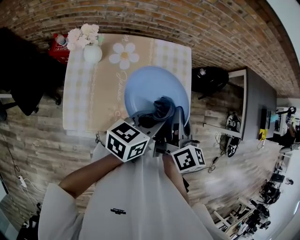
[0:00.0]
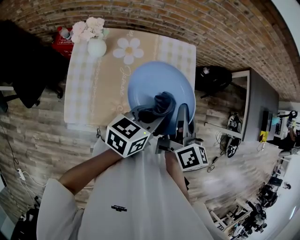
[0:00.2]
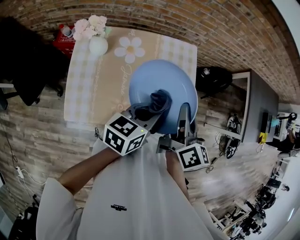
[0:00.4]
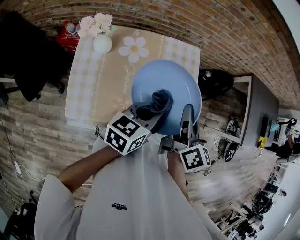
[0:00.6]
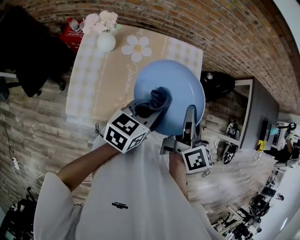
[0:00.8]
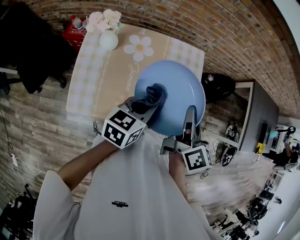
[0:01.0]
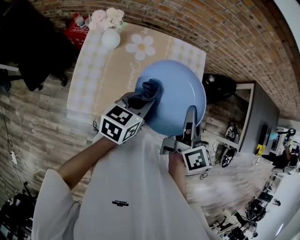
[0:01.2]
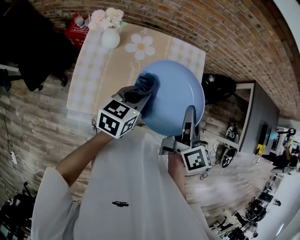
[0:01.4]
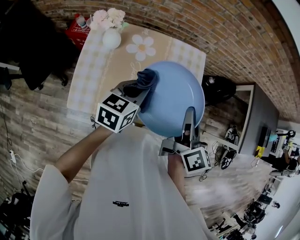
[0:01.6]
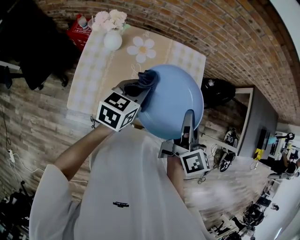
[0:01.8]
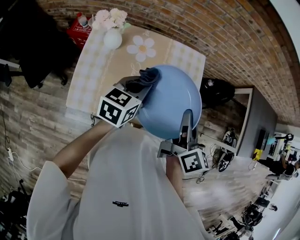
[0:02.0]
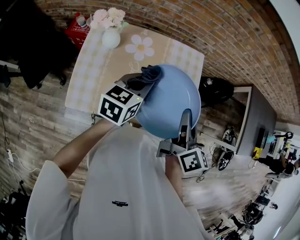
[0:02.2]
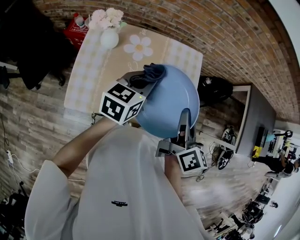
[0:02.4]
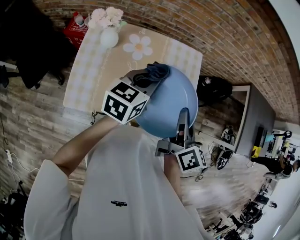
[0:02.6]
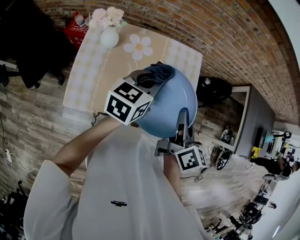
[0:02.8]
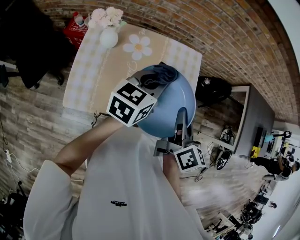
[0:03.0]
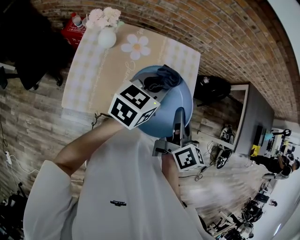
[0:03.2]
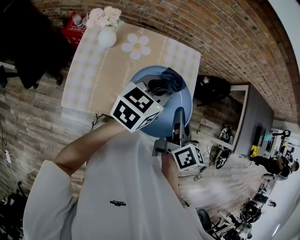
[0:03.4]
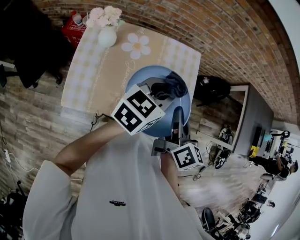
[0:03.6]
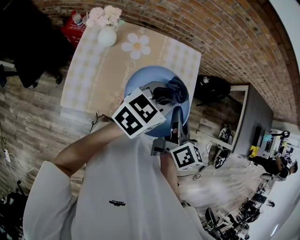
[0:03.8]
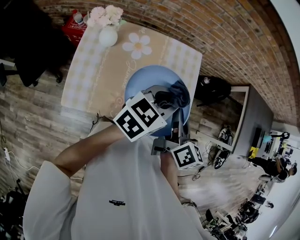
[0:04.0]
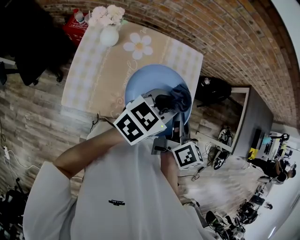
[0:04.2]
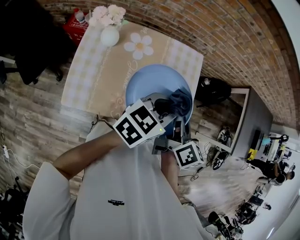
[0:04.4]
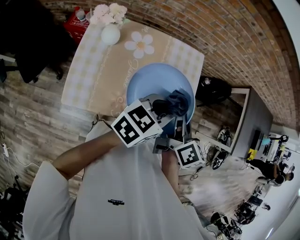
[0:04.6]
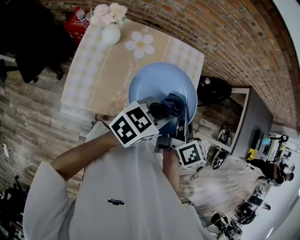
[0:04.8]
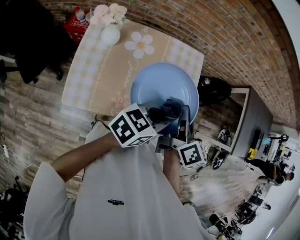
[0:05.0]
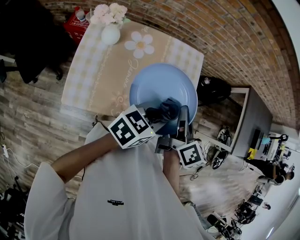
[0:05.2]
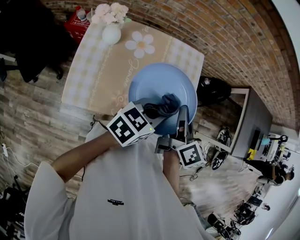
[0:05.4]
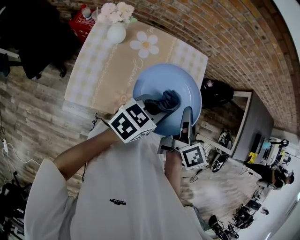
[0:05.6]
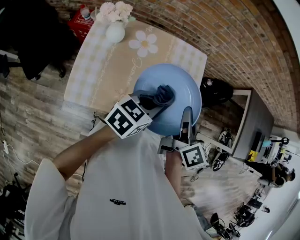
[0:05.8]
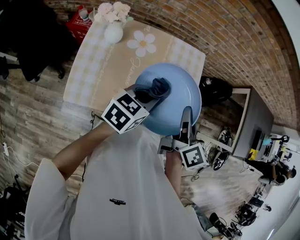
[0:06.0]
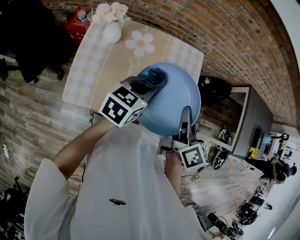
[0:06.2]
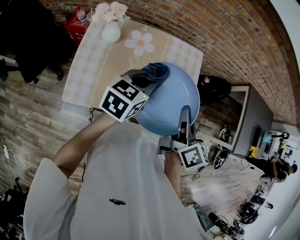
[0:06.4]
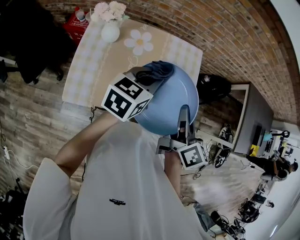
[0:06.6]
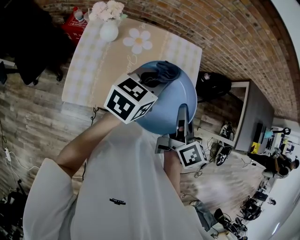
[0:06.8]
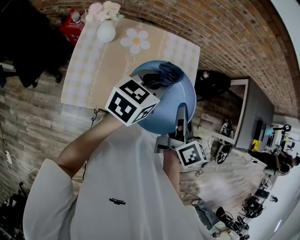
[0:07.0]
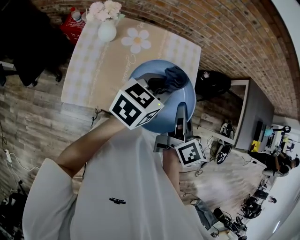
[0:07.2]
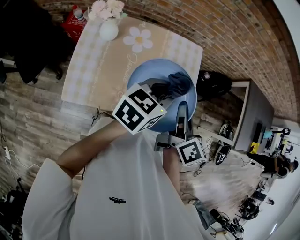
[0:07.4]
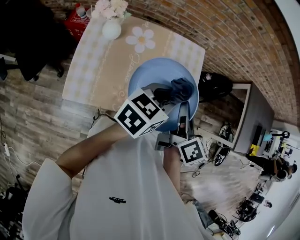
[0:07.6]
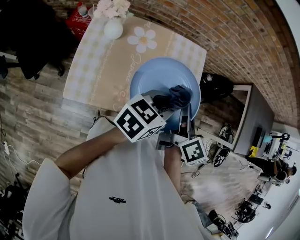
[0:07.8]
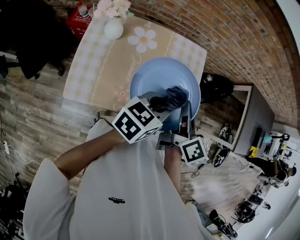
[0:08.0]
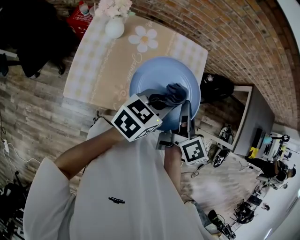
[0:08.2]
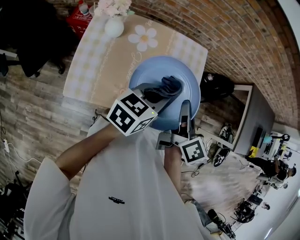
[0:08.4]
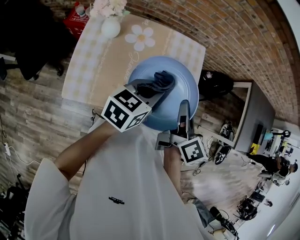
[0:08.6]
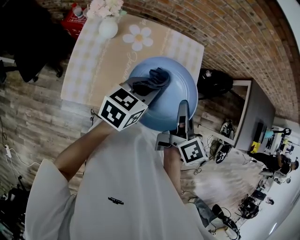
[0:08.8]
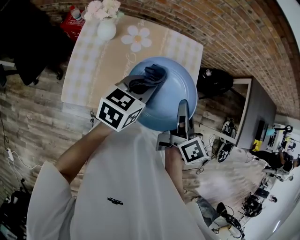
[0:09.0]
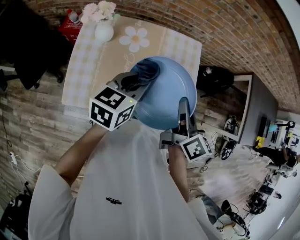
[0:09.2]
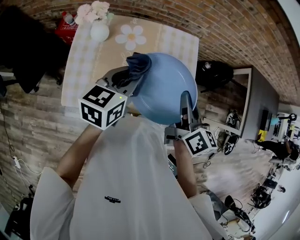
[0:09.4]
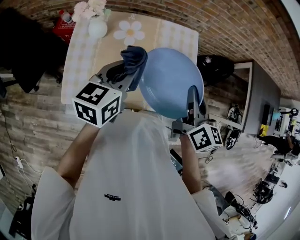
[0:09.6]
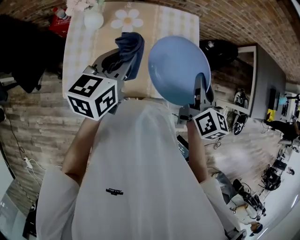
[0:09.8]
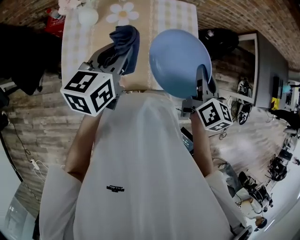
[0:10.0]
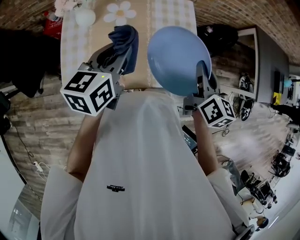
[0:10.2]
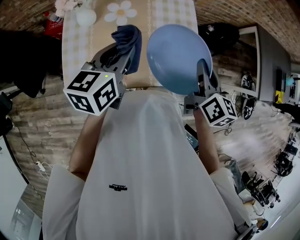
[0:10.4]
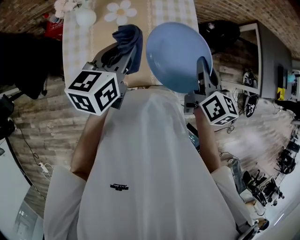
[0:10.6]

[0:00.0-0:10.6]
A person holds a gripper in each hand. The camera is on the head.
0:00.0 to 0:01.6: The left gripper moves to the left, about 10 cm, and changes its angle by approximately 20 degrees.
0:01.6 to 0:03.0: The left gripper goes about 5 cm upward.
0:03.0 to 0:04.6: The left gripper shifts roughly 5 cm to the right.
0:04.6 to 0:06.0: The left gripper moves downward and to the left, some 10 cm.
0:06.0 to 0:07.6: The left gripper travels upward and to the right by about 10 cm.
0:07.6 to 0:09.0: The left gripper heads to the left, covering some 5 cm.
0:09.0 to 0:10.6: The right gripper is displaced to the right by about 5 cm.

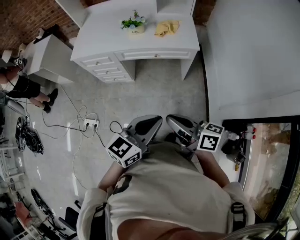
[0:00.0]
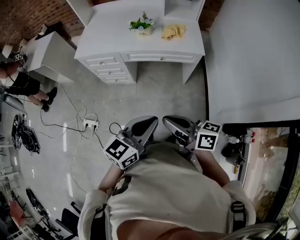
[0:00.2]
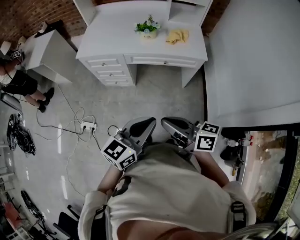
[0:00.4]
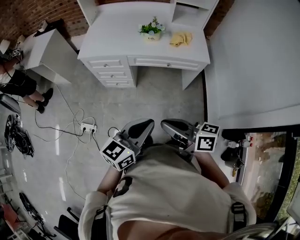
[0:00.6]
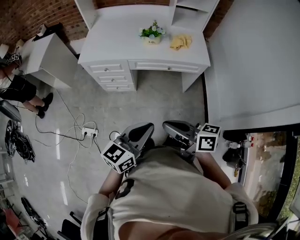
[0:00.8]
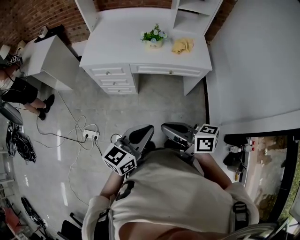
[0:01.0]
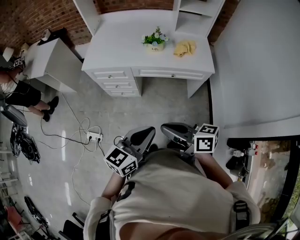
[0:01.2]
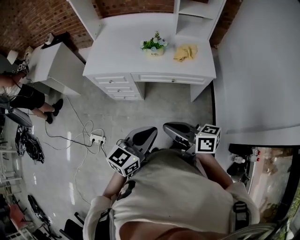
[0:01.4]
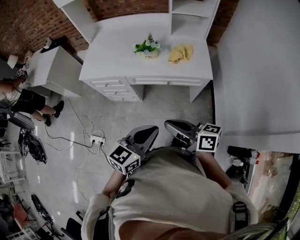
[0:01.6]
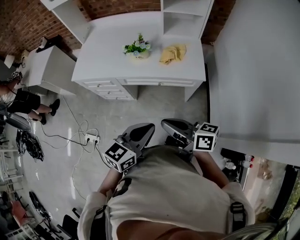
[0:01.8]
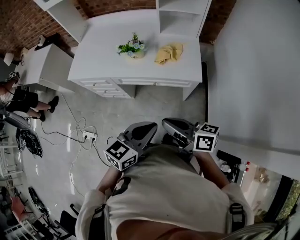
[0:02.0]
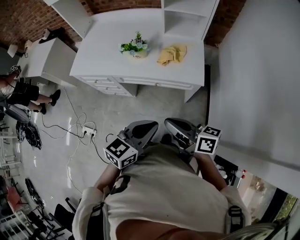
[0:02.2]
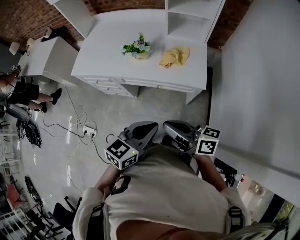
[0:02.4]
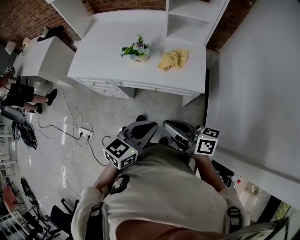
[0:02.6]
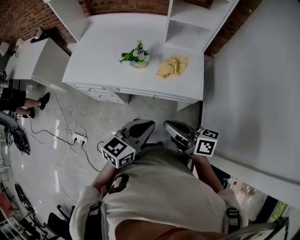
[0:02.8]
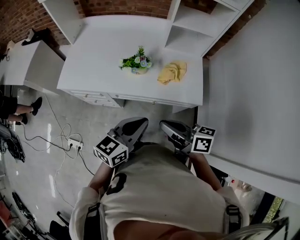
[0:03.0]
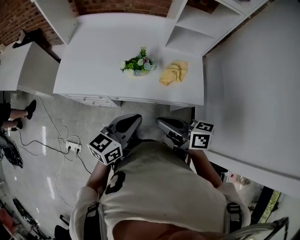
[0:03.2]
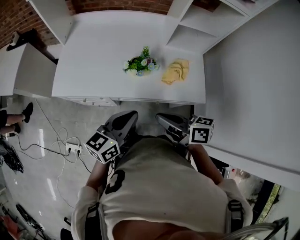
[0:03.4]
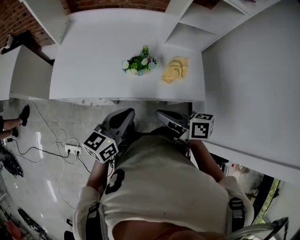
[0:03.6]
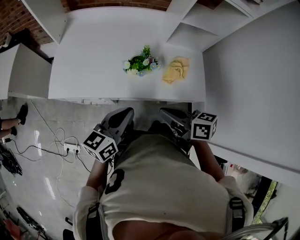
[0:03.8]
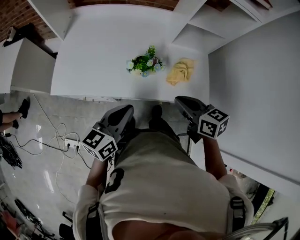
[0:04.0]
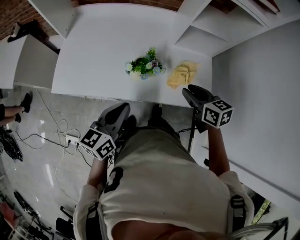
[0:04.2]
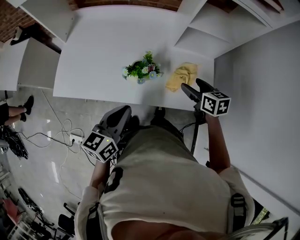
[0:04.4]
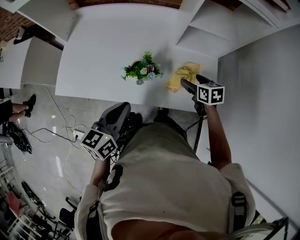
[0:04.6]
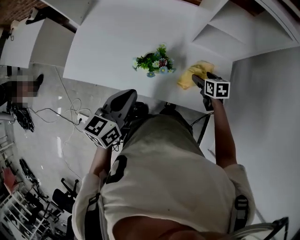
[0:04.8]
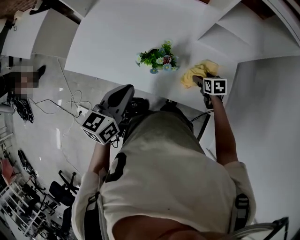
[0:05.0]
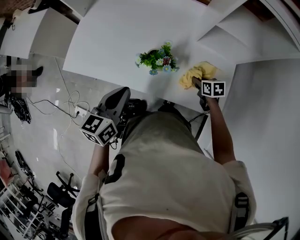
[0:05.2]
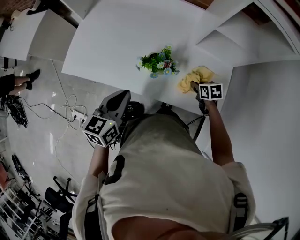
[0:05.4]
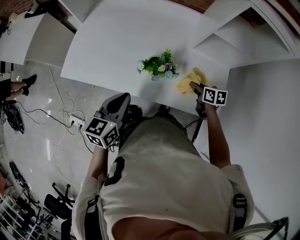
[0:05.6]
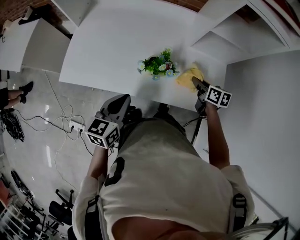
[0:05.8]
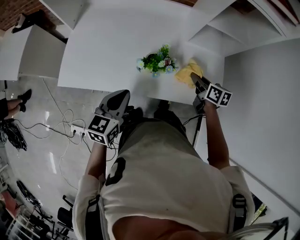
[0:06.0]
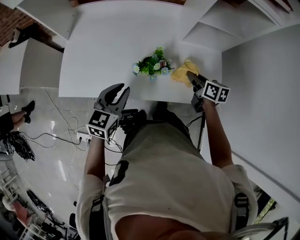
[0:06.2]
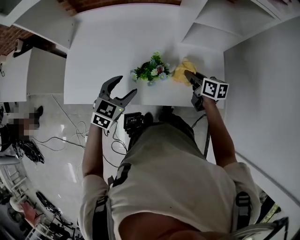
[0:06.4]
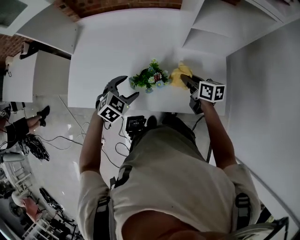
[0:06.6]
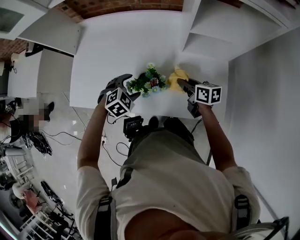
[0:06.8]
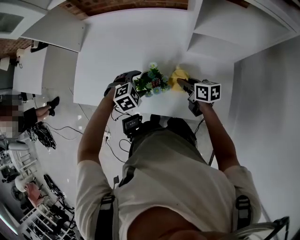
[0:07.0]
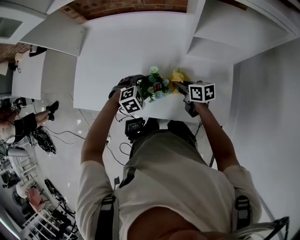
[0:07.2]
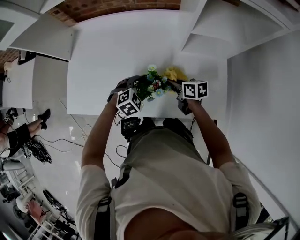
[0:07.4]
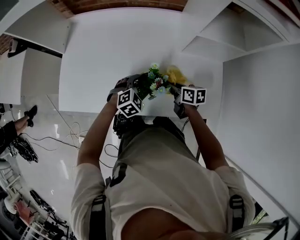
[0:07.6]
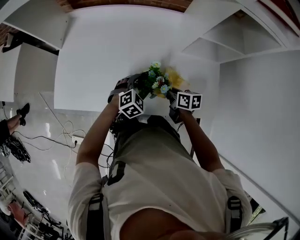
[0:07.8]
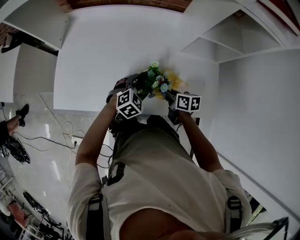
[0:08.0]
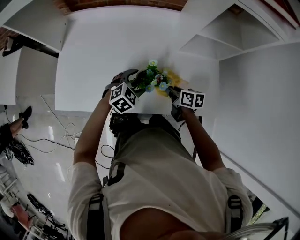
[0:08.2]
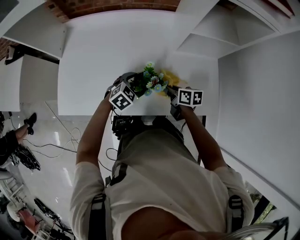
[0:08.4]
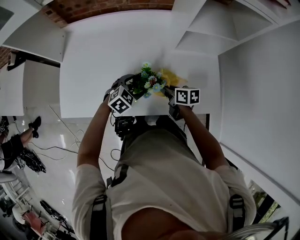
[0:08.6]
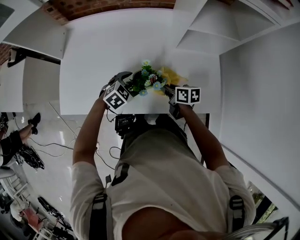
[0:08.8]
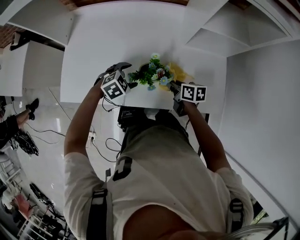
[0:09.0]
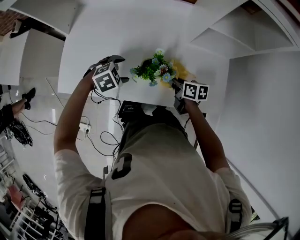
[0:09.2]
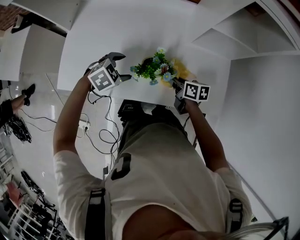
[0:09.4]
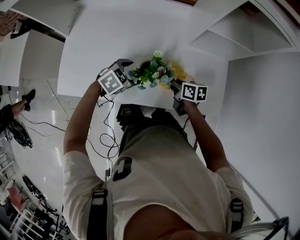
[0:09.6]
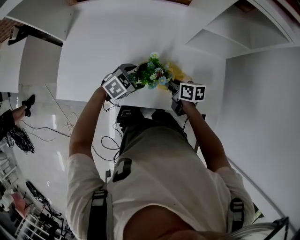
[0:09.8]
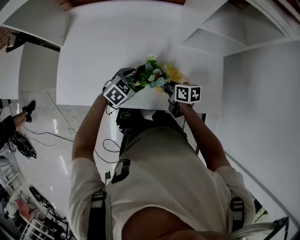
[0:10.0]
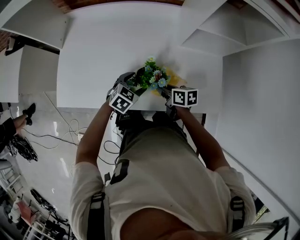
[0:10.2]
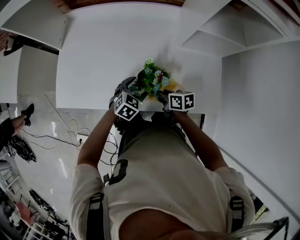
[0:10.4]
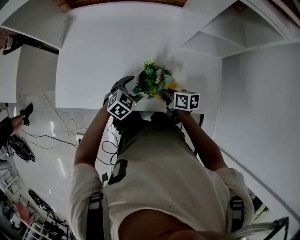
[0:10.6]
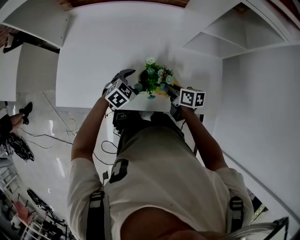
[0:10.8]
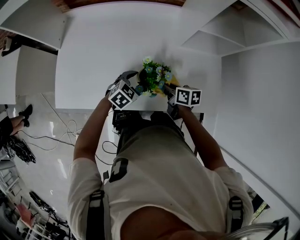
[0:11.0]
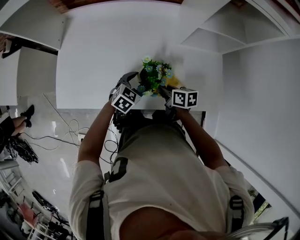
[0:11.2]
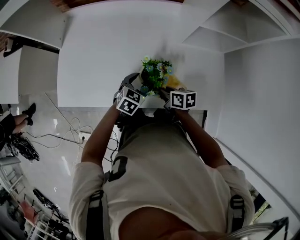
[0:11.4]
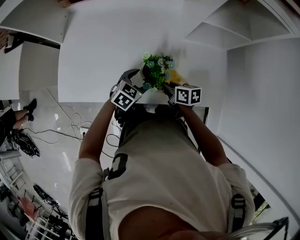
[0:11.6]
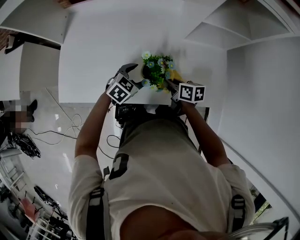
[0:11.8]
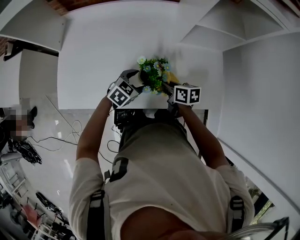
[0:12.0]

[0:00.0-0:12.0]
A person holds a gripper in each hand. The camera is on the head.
0:00.0 to 0:01.6: The grippers both shift forward by some 15 cm. The left gripper moves roughly 15 cm to the left and comes back, while the right gripper travels to the left and back again, approximately 15 cm each way.
0:01.6 to 0:03.0: The grippers both shift forward by approximately 20 cm.
0:03.0 to 0:04.4: The left gripper is displaced forward and to the left by some 20 cm. The right gripper goes roughly 25 cm forward, tilts its fingers about 30 degrees downward, and opens its fingers.
0:04.4 to 0:06.0: The left gripper moves to the left, about 5 cm. The right gripper travels downward and back again, roughly 20 cm each way, and closes up.
0:06.0 to 0:07.6: The right gripper is displaced downward and to the left by roughly 10 cm; the left gripper moves downward, forward and to the right, about 25 cm, tilts its fingers approximately 30 degrees downward, and opens.
0:07.6 to 0:09.0: The left gripper heads to the left, covering about 5 cm.
0:09.0 to 0:10.4: The left gripper shifts by approximately 5 cm, and changes its angle by approximately 30 degrees, while the right gripper ends up roughly 5 cm from where it was.
0:10.4 to 0:12.0: The grippers move only a little.

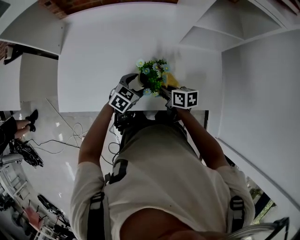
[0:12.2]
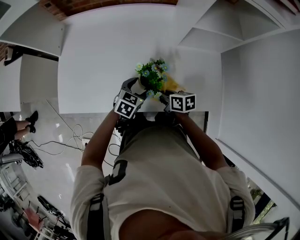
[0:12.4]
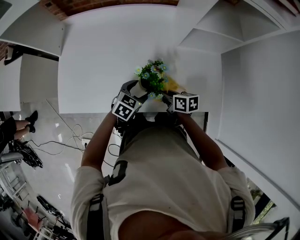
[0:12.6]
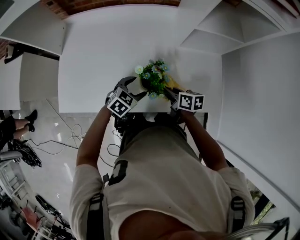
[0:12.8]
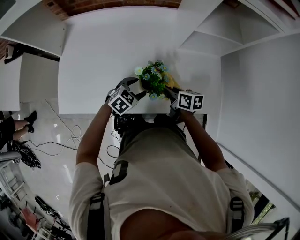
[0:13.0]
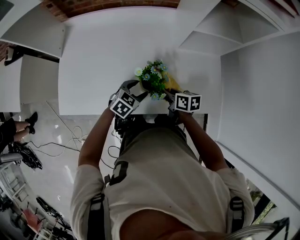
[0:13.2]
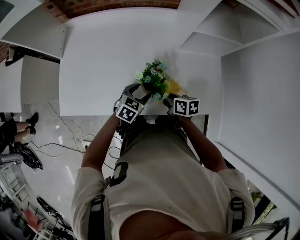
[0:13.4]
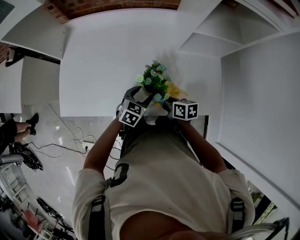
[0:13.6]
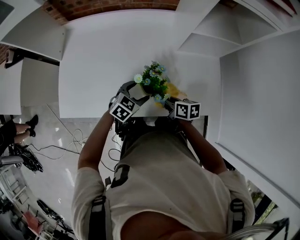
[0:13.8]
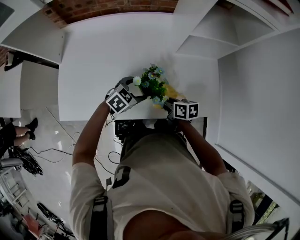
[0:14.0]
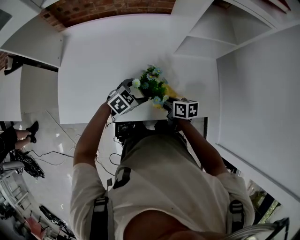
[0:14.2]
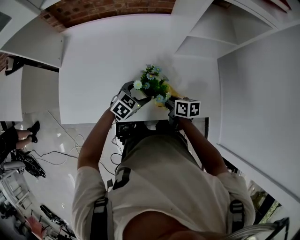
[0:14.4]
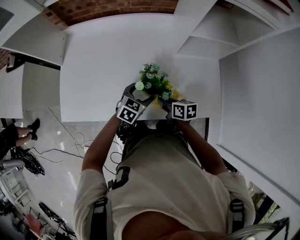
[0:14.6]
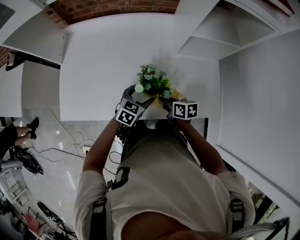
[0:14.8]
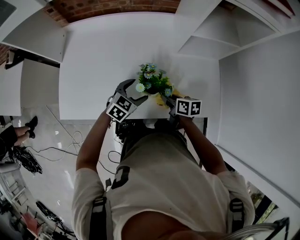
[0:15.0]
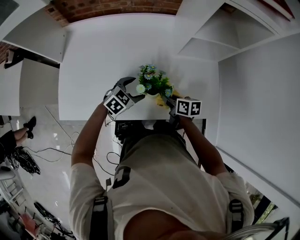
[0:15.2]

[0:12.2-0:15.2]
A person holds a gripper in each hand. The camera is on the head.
0:12.2 to 0:15.2: The grippers stay close to where they were, moving slightly.
